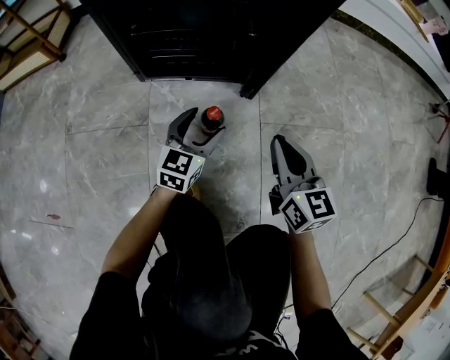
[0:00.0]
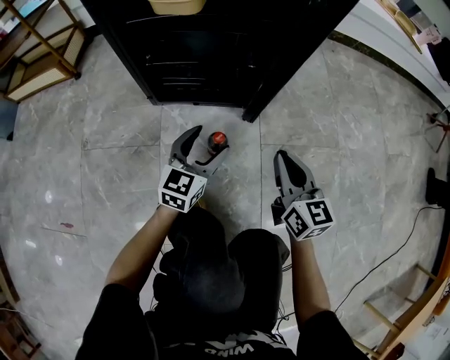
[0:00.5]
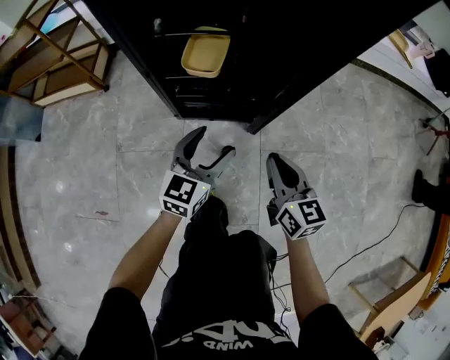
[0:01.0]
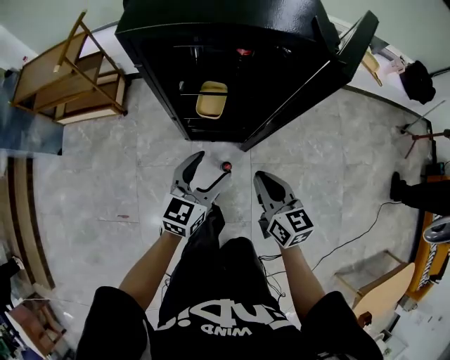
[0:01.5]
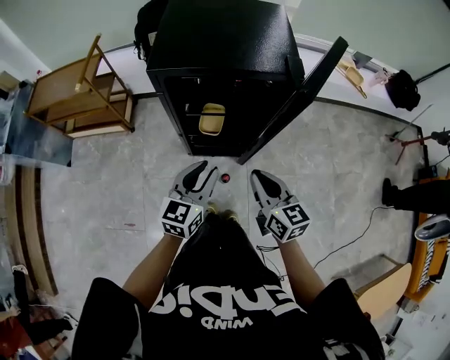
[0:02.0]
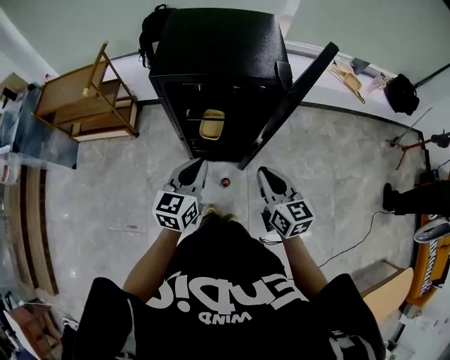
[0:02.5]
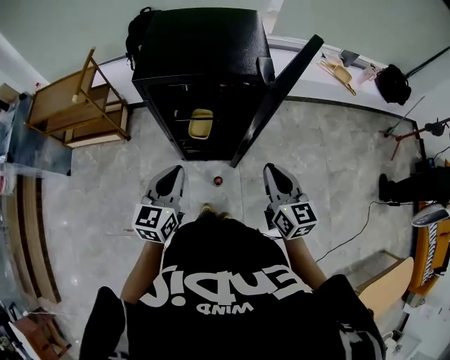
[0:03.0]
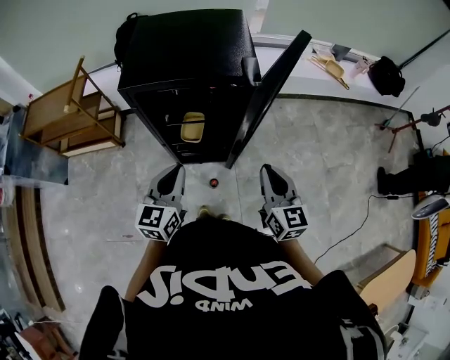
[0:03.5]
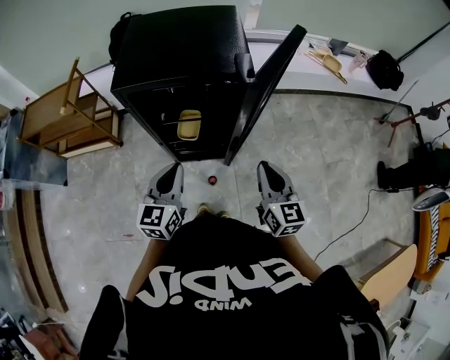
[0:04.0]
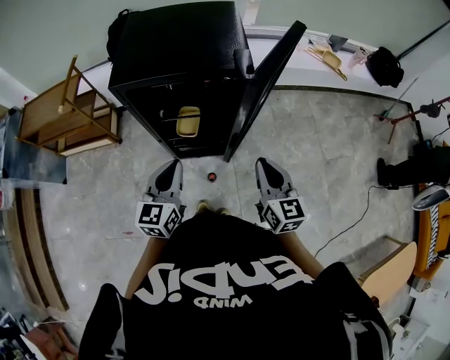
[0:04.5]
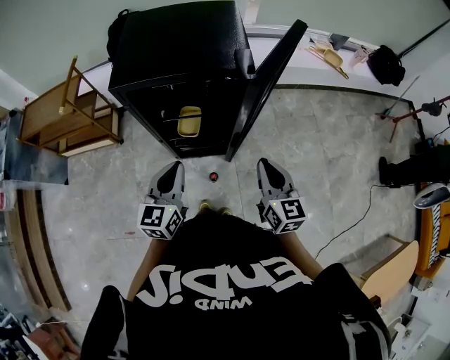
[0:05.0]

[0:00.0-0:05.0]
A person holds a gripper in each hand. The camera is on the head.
0:00.0 to 0:02.5: Both grippers travel together upward, roughly 70 cm. The left gripper closes up.
0:02.5 to 0:05.0: The right gripper shifts about 10 cm to the right.

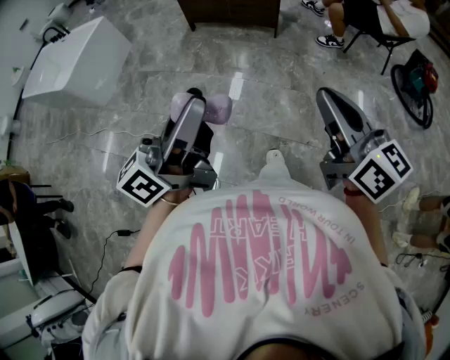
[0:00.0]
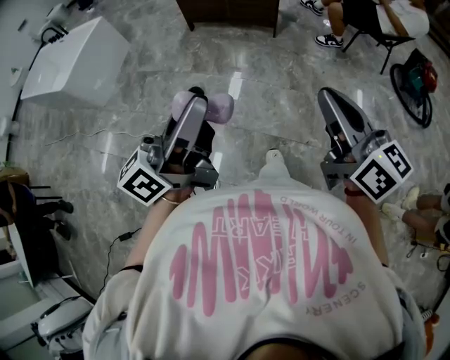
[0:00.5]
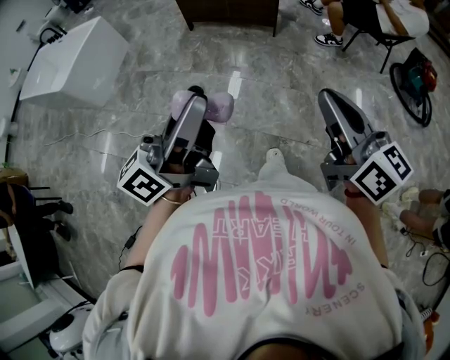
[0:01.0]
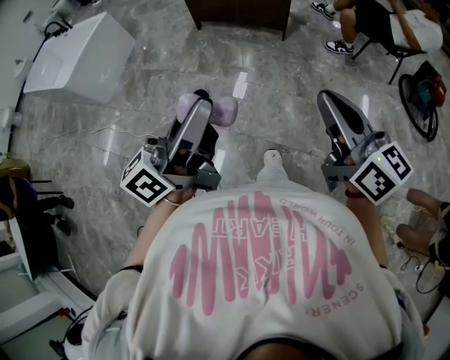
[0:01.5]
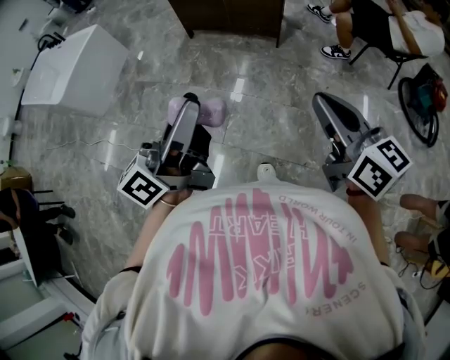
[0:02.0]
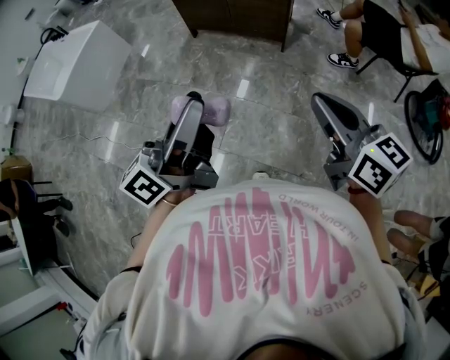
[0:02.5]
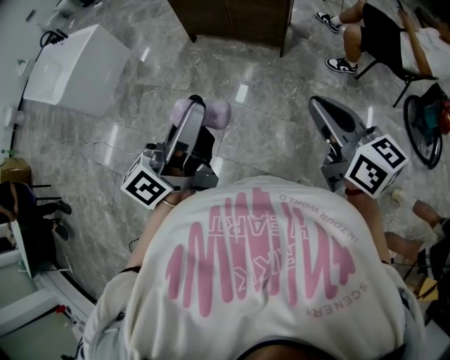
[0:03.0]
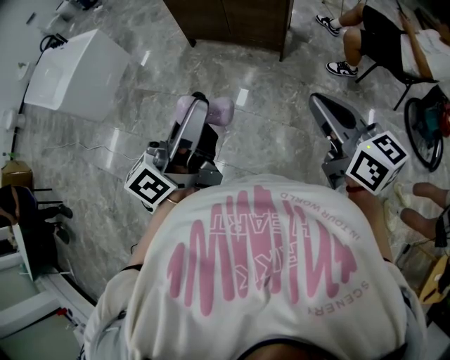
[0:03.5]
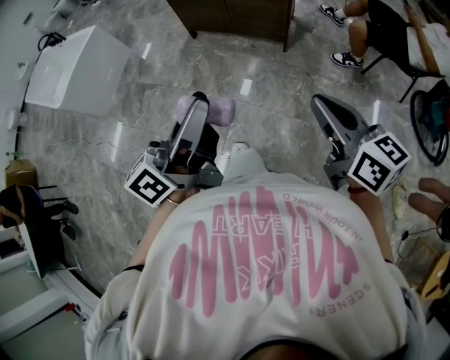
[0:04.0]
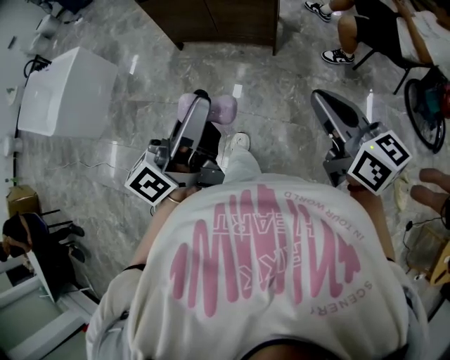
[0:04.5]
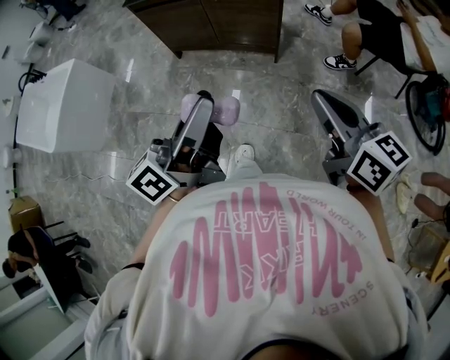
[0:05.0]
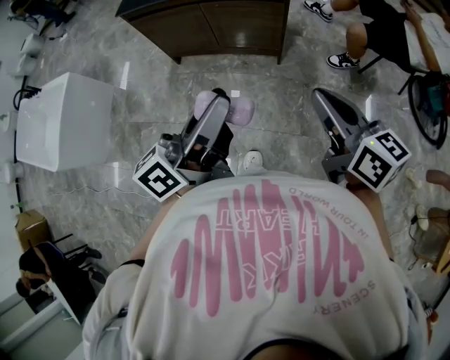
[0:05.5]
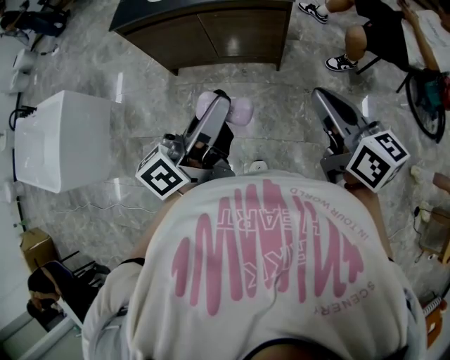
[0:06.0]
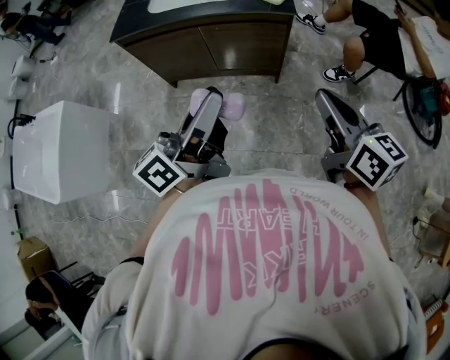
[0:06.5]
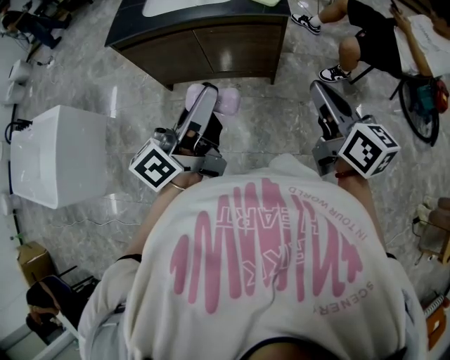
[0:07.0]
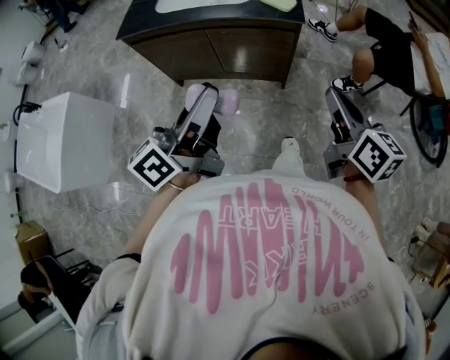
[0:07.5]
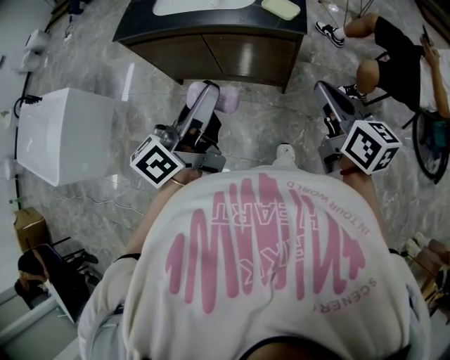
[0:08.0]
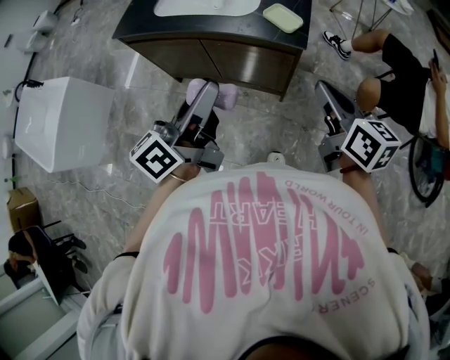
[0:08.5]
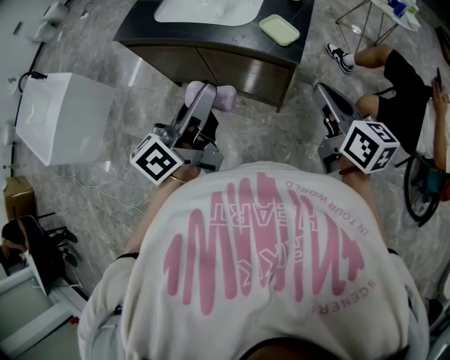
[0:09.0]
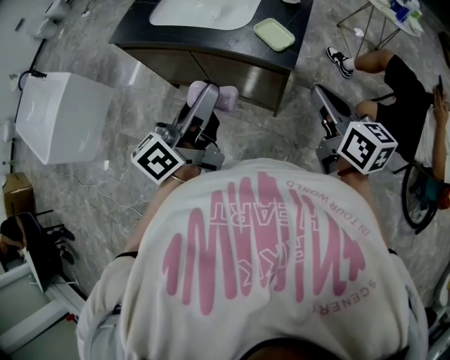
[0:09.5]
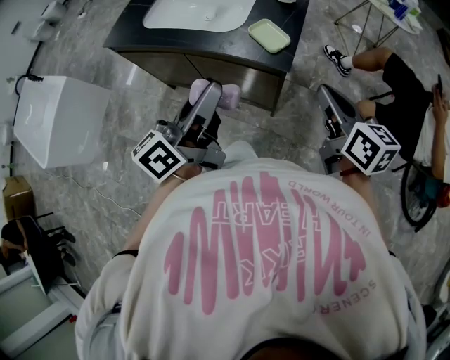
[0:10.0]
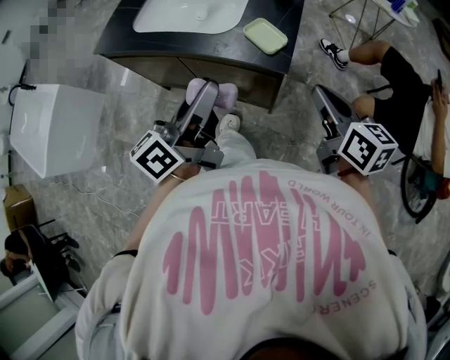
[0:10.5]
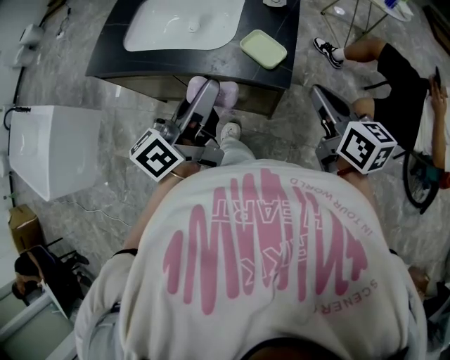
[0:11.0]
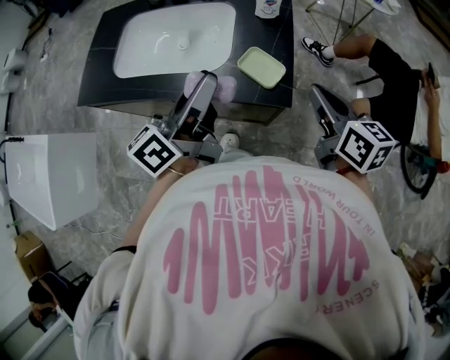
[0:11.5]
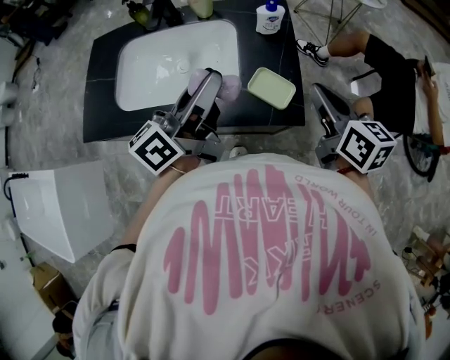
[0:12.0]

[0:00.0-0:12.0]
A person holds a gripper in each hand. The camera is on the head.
0:00.0 to 0:02.0: Both grippers travel together forward, approximately 20 cm.
0:02.0 to 0:04.0: The grippers both shift forward and to the right by some 15 cm.
0:04.0 to 0:06.0: The grippers both shift forward by about 30 cm. The left gripper turns by about 20 degrees.
0:06.0 to 0:08.0: Both grippers move forward, about 20 cm.
0:08.0 to 0:10.0: The grippers both shift forward and to the right by about 15 cm.
0:10.0 to 0:12.0: The left gripper is displaced forward by some 25 cm, and rotates about 20 degrees, while the right gripper goes approximately 15 cm forward.

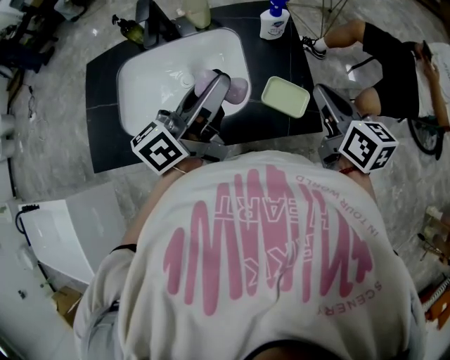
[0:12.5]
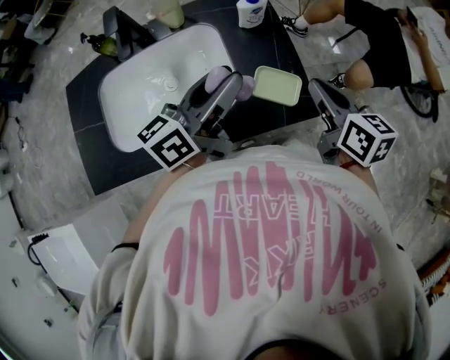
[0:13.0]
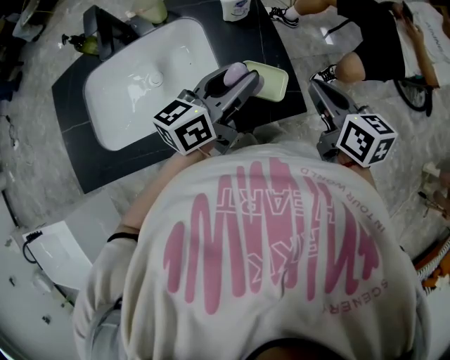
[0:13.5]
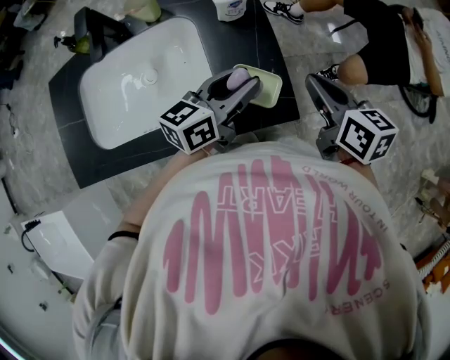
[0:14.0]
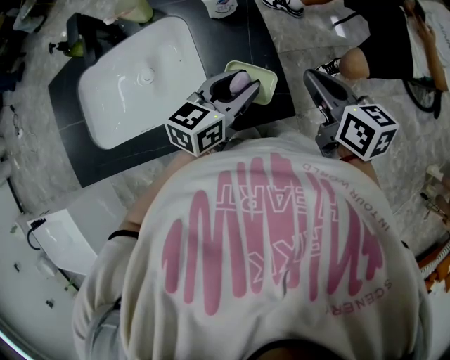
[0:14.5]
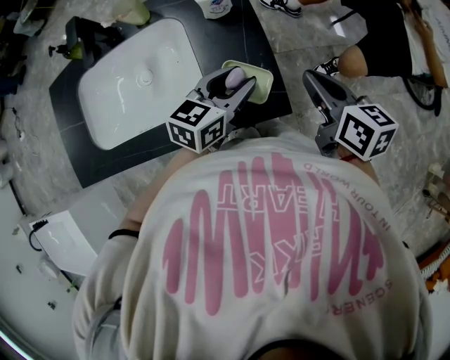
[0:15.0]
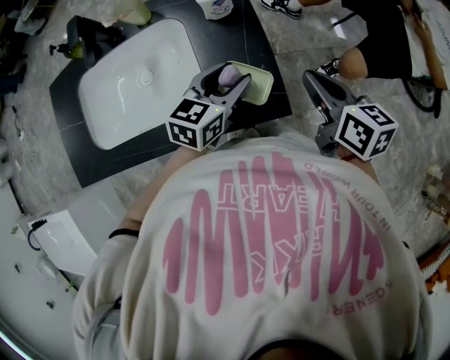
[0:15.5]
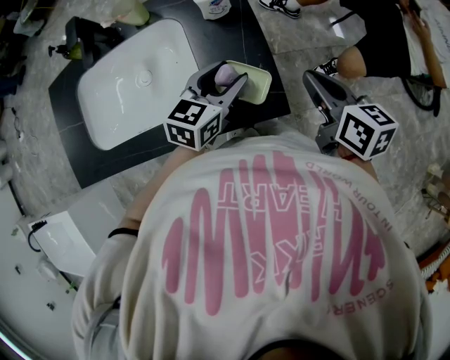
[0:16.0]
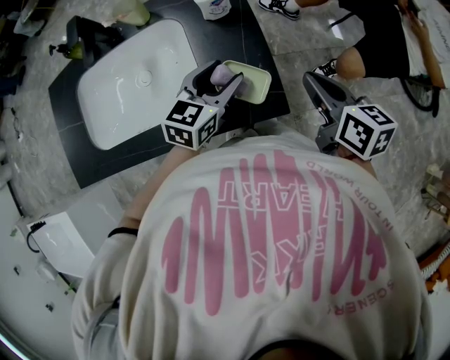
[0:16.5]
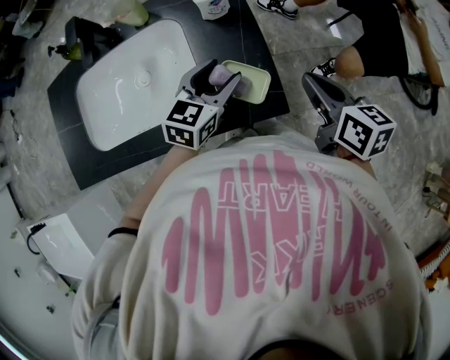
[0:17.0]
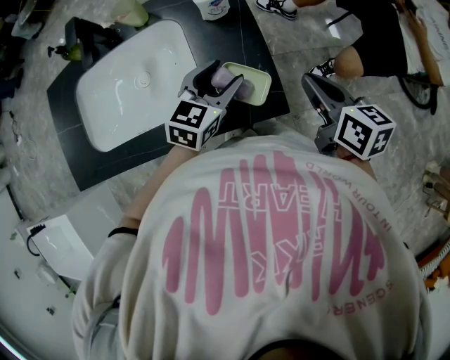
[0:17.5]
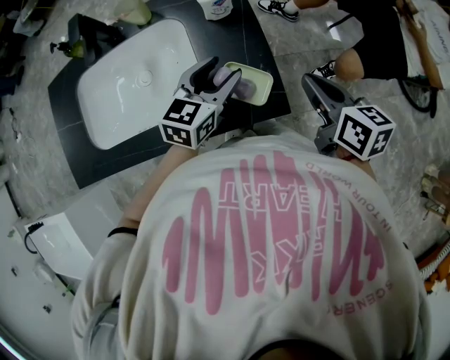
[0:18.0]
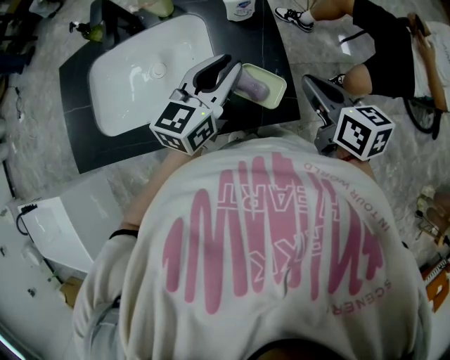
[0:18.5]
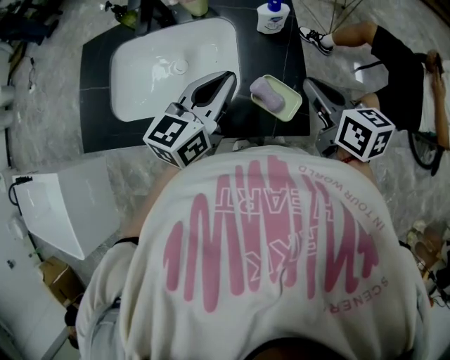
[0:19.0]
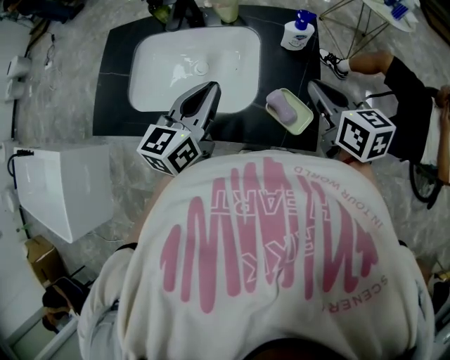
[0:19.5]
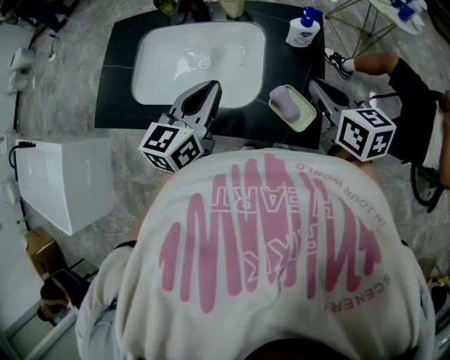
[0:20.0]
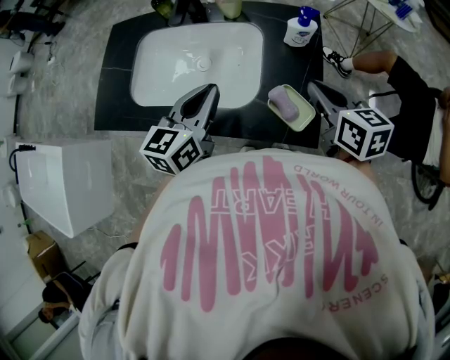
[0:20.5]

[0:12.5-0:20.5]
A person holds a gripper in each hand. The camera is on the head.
0:12.5 to 0:14.5: The left gripper shifts approximately 20 cm to the right and downward, and rotates approximately 40 degrees, while the right gripper heads to the right and downward, covering approximately 10 cm.
0:14.5 to 0:16.5: The grippers stay close to where they were, moving slightly.
0:16.5 to 0:18.5: The left gripper travels upward by approximately 10 cm, and closes up.
0:18.5 to 0:20.5: The right gripper goes some 10 cm to the left and forward. The left gripper goes approximately 15 cm to the left, changes its angle by approximately 20 degrees, and closes up.

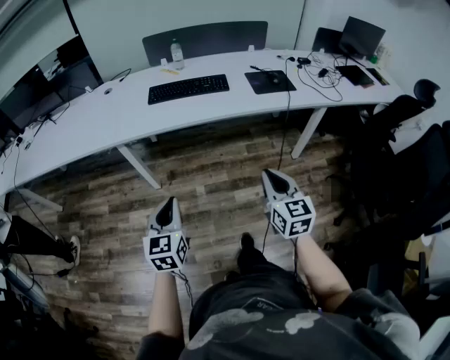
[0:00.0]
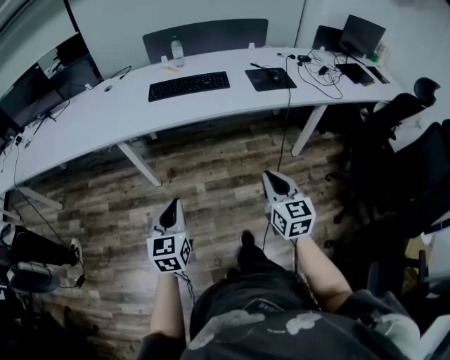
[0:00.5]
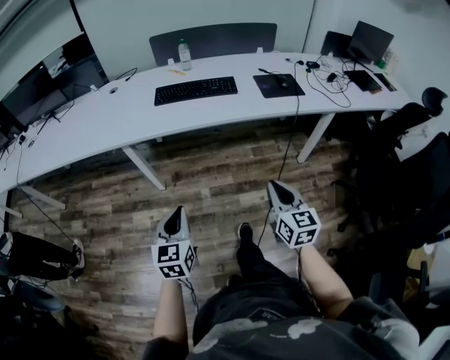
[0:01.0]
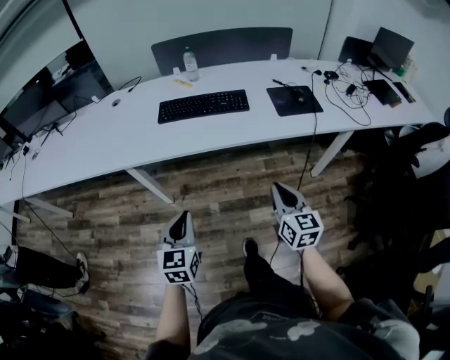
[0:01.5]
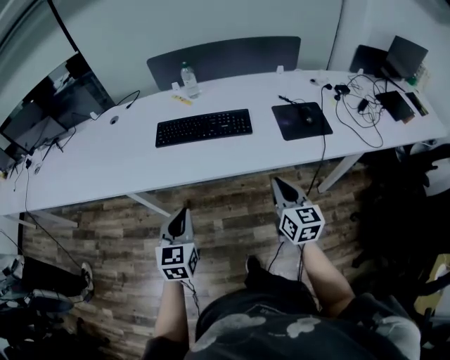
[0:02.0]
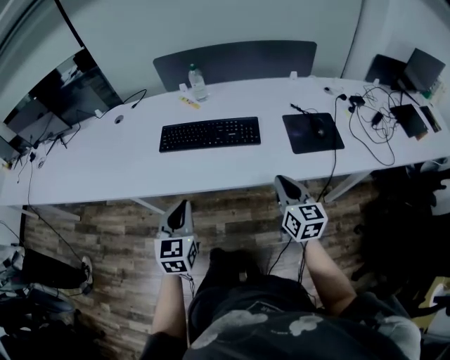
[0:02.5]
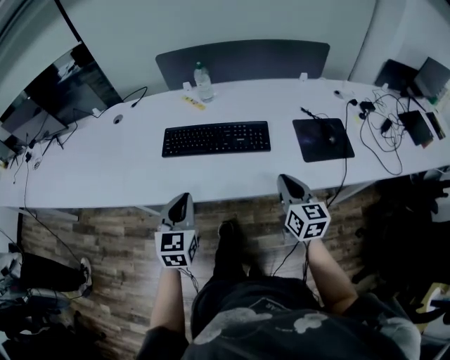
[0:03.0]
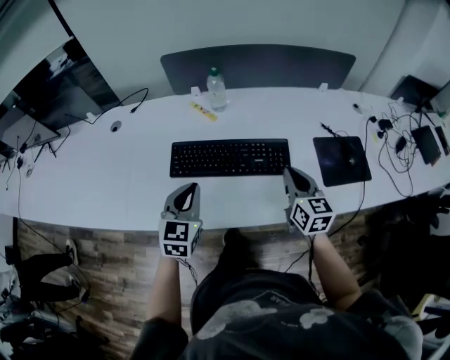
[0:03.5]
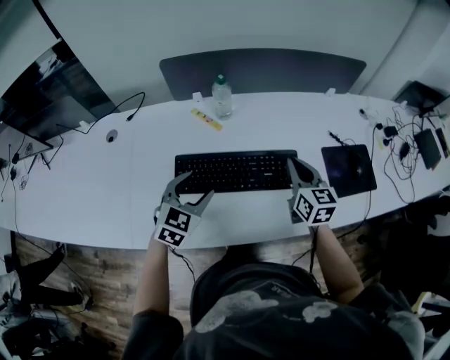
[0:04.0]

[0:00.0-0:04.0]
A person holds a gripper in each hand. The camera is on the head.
0:00.0 to 0:02.0: The two grippers go about 30 cm forward.
0:02.0 to 0:04.0: Both grippers move forward, roughly 35 cm. The left gripper changes its angle by roughly 30 degrees, and opens up.
